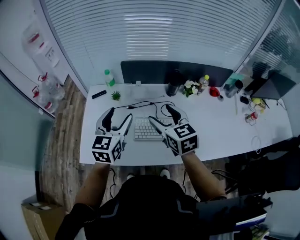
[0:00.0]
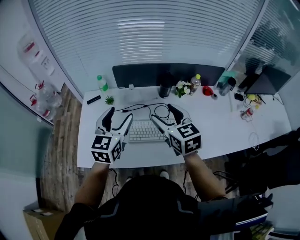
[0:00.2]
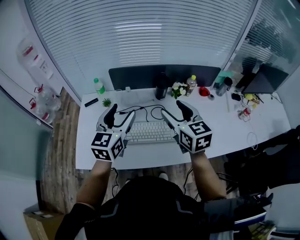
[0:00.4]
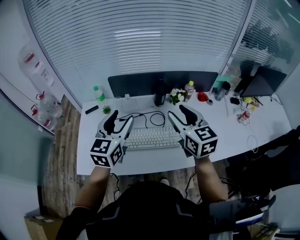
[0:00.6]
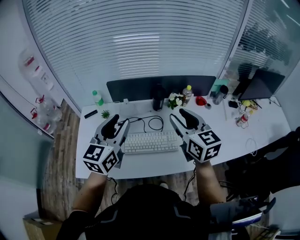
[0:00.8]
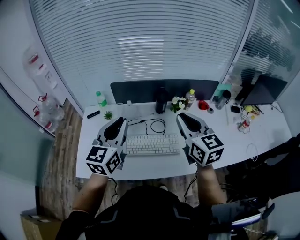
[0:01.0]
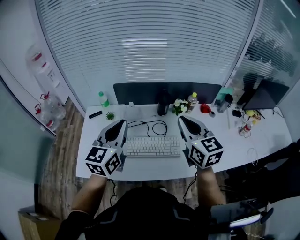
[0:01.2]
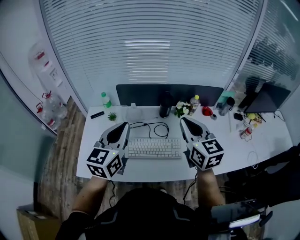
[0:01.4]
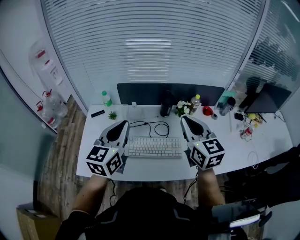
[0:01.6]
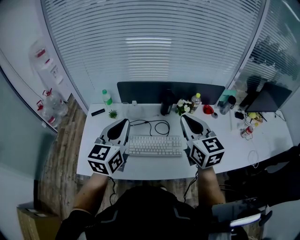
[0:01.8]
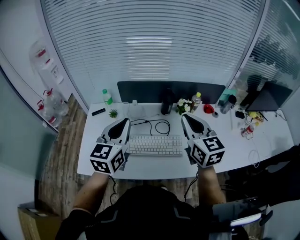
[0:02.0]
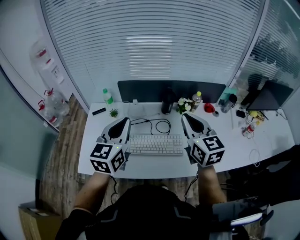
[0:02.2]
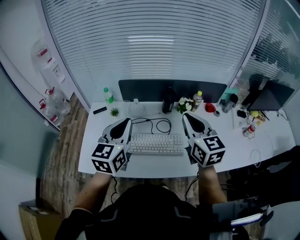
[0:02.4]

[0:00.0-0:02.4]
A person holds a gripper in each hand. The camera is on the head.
0:00.0 to 0:01.2: The left gripper heads upward and to the right, covering some 10 cm, and closes. The right gripper is displaced to the right and upward by some 20 cm, and closes up.
0:01.2 to 0:02.4: There are only small adjustments of the grippers.

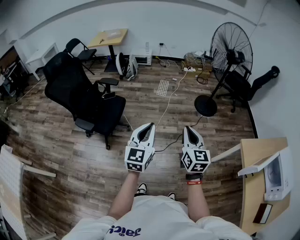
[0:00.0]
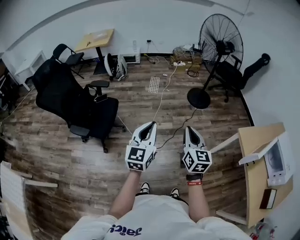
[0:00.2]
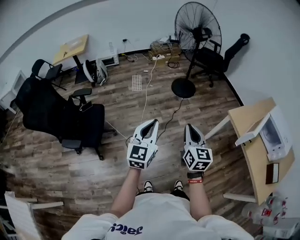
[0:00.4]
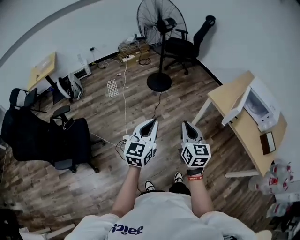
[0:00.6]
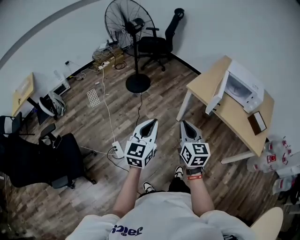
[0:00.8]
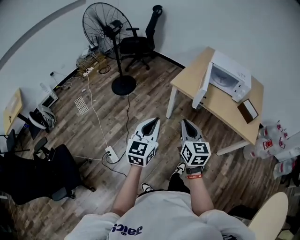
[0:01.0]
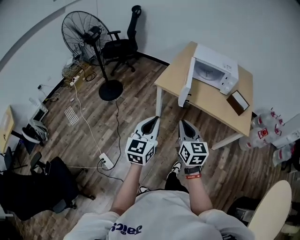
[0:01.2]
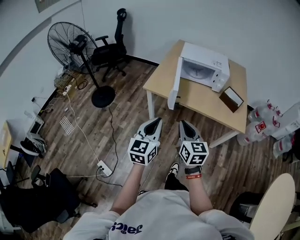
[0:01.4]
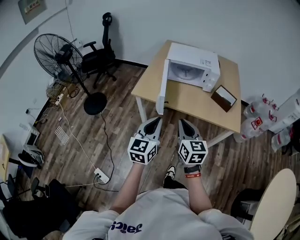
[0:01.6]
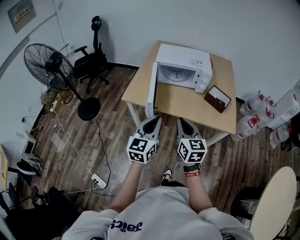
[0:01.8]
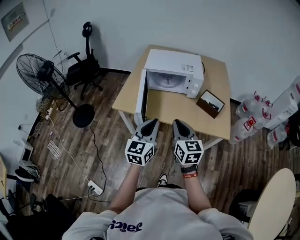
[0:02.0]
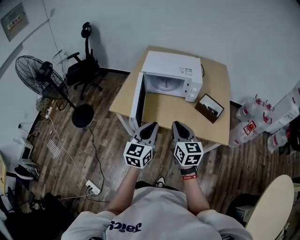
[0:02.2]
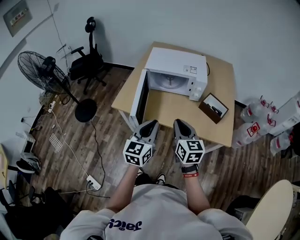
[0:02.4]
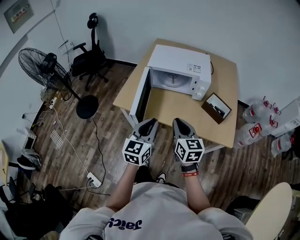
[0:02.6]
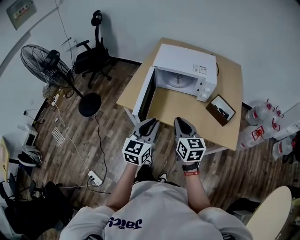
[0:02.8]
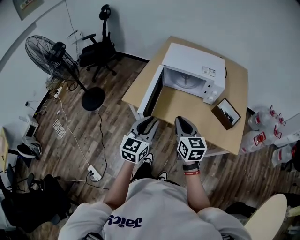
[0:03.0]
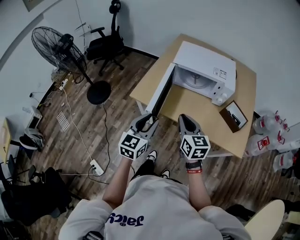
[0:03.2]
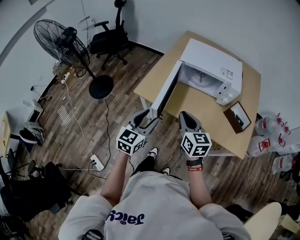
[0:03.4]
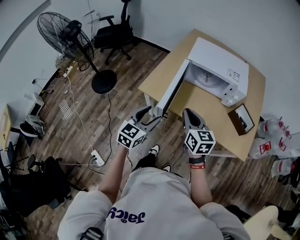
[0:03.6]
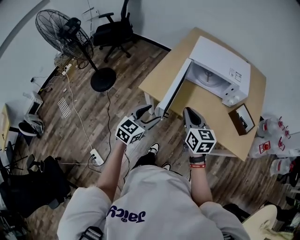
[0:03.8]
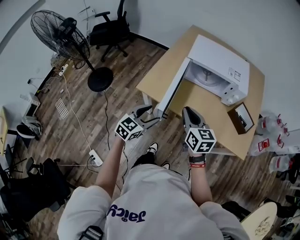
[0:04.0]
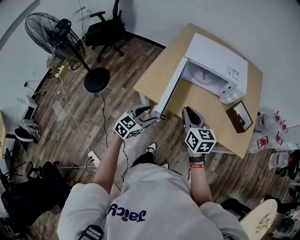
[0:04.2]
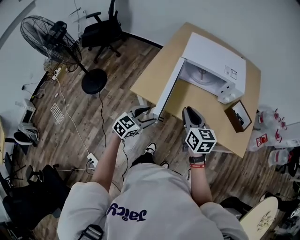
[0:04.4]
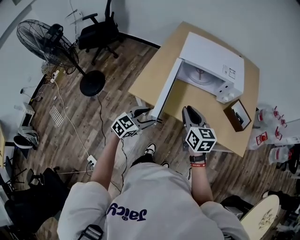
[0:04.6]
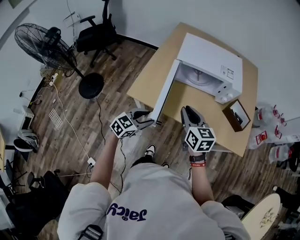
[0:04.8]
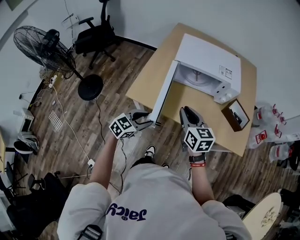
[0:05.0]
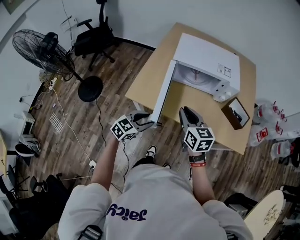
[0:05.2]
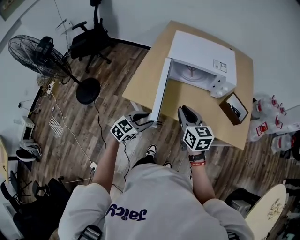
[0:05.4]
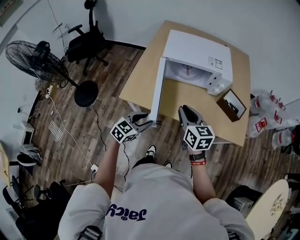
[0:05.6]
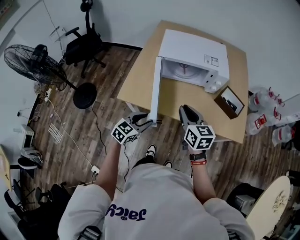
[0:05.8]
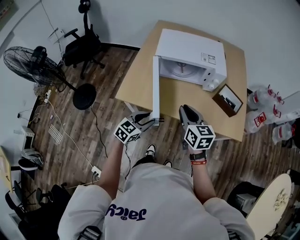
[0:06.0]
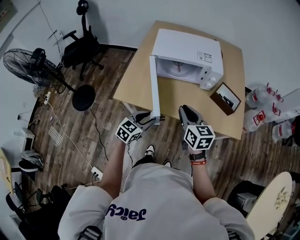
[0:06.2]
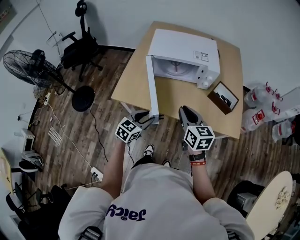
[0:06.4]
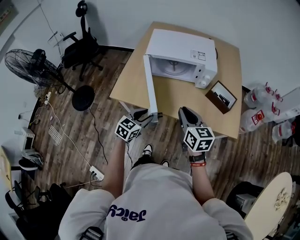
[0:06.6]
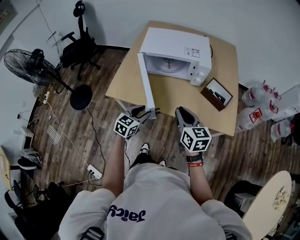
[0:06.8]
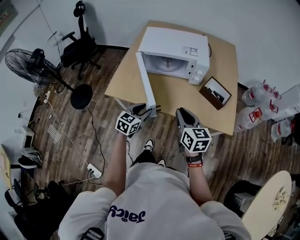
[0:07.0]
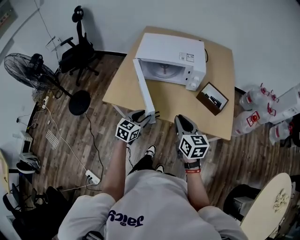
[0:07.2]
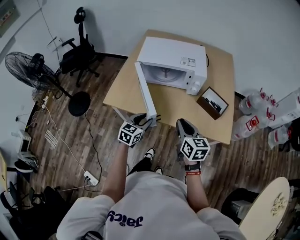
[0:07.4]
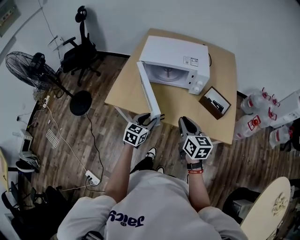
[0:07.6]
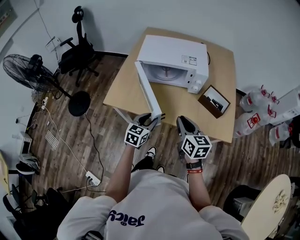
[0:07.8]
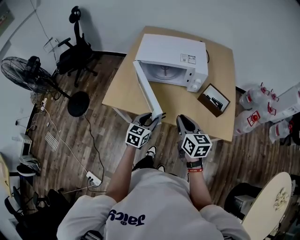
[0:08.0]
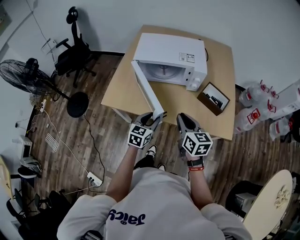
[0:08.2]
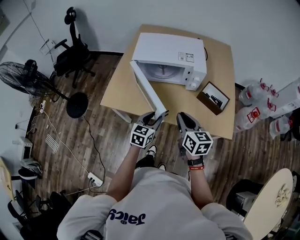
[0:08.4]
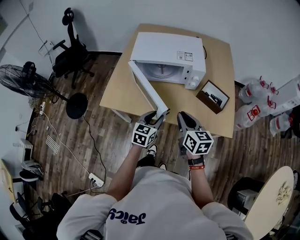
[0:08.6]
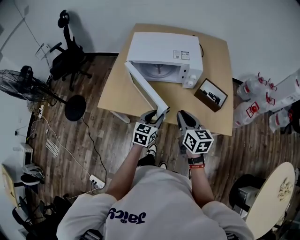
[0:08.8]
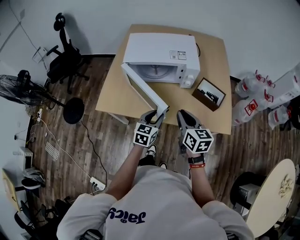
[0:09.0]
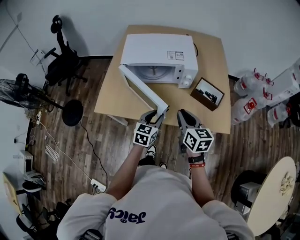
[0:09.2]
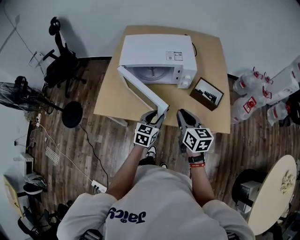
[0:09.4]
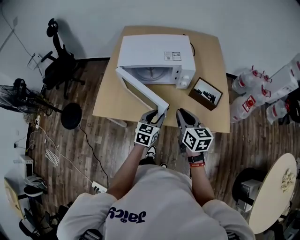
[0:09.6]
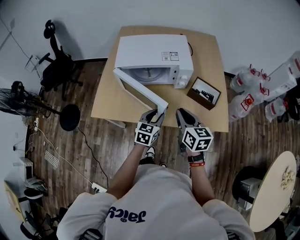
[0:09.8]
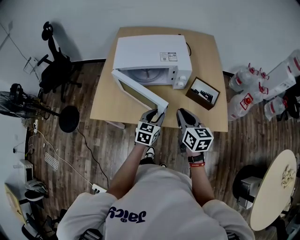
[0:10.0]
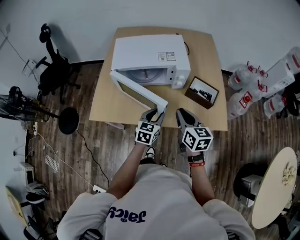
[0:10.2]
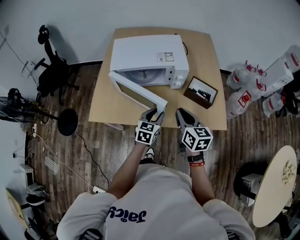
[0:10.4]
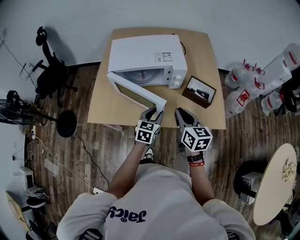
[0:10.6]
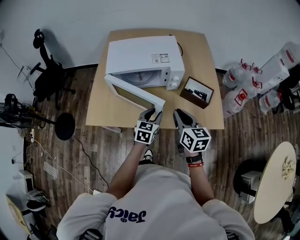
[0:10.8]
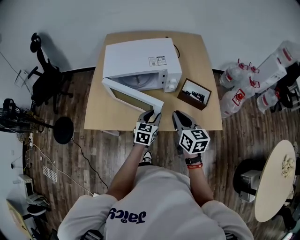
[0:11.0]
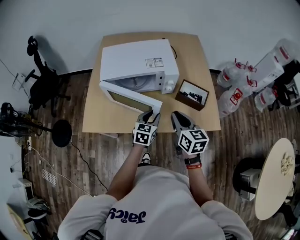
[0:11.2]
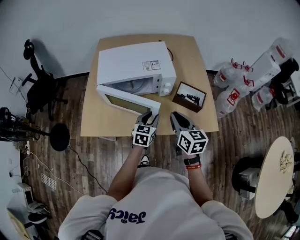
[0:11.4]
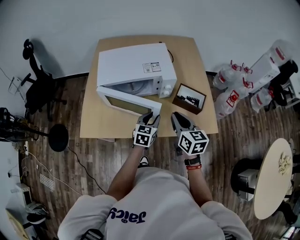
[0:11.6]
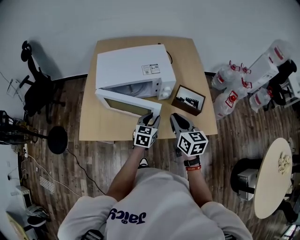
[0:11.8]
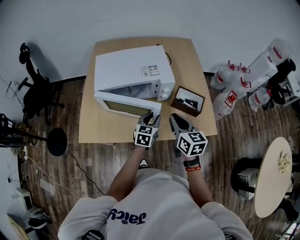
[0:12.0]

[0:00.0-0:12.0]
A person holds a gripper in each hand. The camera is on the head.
0:00.0 to 0:01.6: The two grippers travel together, about 60 cm. The left gripper swivels approximately 70 degrees. The right gripper turns by about 70 degrees.
0:01.6 to 0:03.0: Both grippers move forward, about 20 cm.
0:03.0 to 0:04.4: The left gripper shifts about 20 cm downward, to the left and forward, rotates some 30 degrees, and opens; the right gripper heads to the left and forward, covering some 15 cm.
0:04.4 to 0:06.0: The two grippers go some 10 cm to the right. The left gripper closes.
0:06.0 to 0:07.6: The two grippers go some 10 cm to the right.
0:07.6 to 0:09.0: The right gripper changes place by about 5 cm, while the left gripper travels to the right by roughly 5 cm.
0:09.0 to 0:10.4: The left gripper ends up some 5 cm from where it was.
0:10.4 to 0:12.0: The grippers both shift forward by approximately 5 cm.

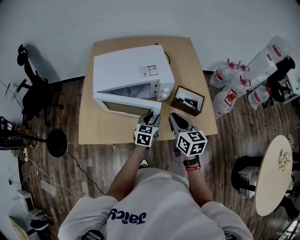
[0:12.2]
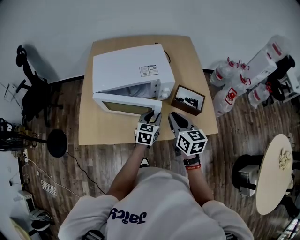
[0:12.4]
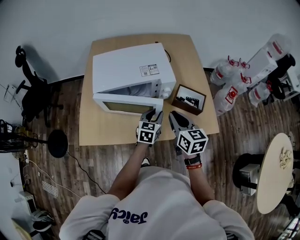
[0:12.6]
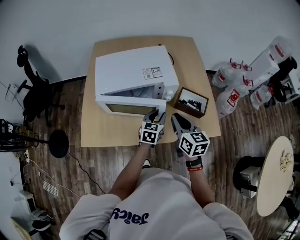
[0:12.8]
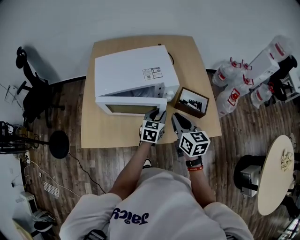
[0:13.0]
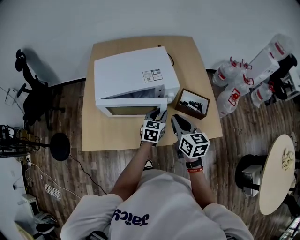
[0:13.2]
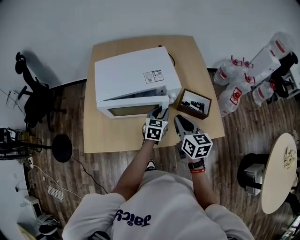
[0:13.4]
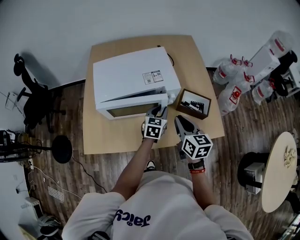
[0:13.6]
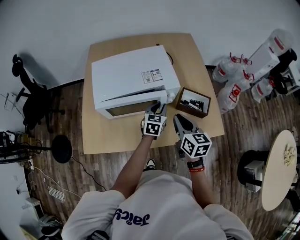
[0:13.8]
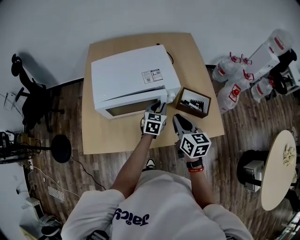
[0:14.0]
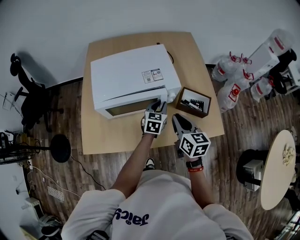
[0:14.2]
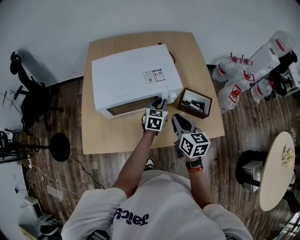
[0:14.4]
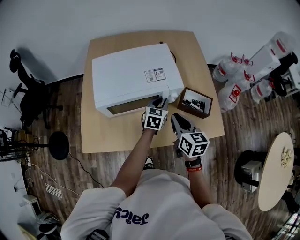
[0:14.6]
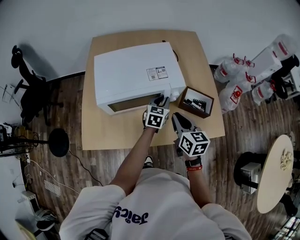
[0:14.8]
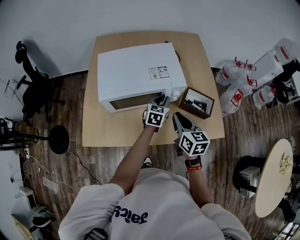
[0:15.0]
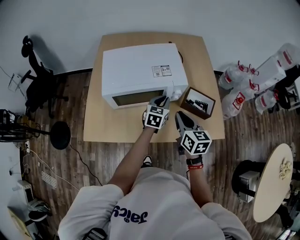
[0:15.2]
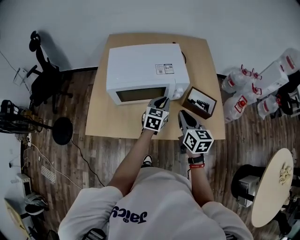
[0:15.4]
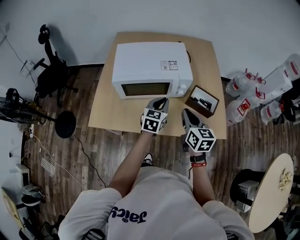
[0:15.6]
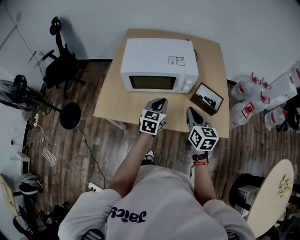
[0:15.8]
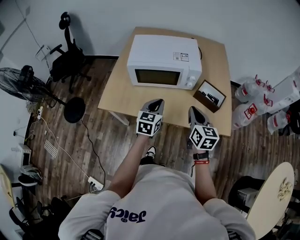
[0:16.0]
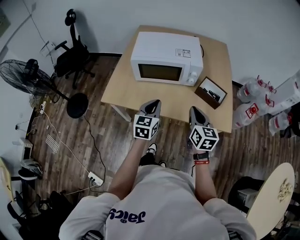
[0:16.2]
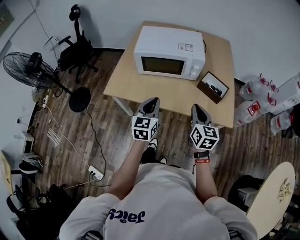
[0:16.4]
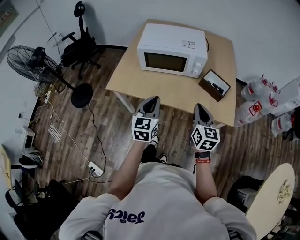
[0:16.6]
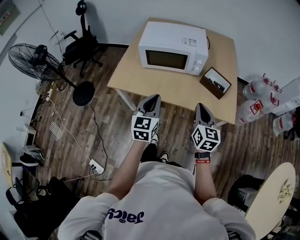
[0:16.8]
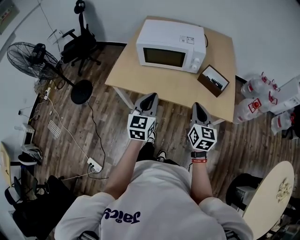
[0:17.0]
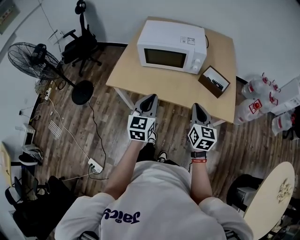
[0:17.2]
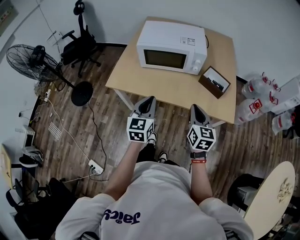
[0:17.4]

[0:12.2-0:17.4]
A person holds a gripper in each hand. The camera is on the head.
0:12.2 to 0:14.0: The right gripper moves forward, about 5 cm. The left gripper is displaced forward by some 10 cm.
0:14.0 to 0:15.6: The left gripper is displaced backward and upward by about 10 cm. The right gripper travels backward by roughly 5 cm.
0:15.6 to 0:17.4: The grippers both shift backward by roughly 25 cm. The left gripper turns by approximately 20 degrees.

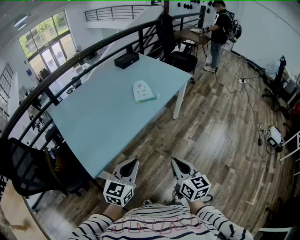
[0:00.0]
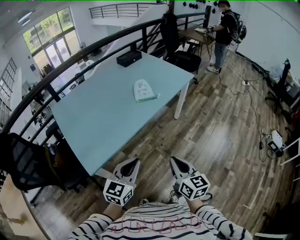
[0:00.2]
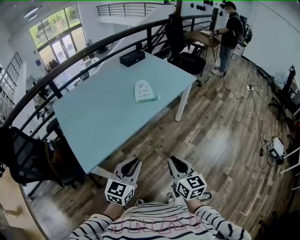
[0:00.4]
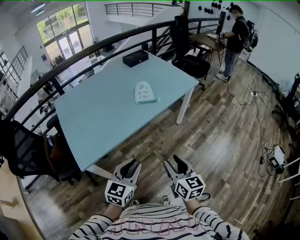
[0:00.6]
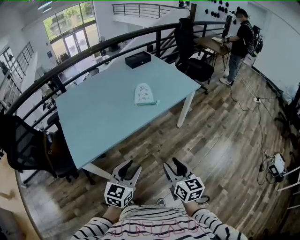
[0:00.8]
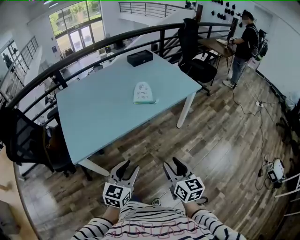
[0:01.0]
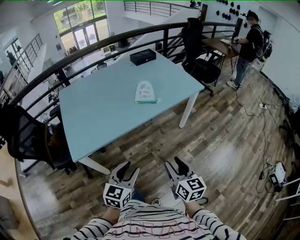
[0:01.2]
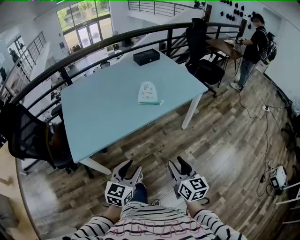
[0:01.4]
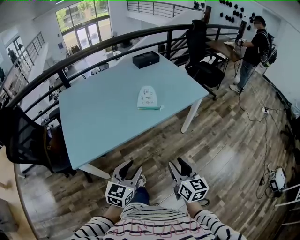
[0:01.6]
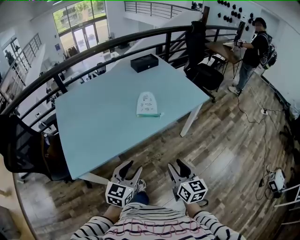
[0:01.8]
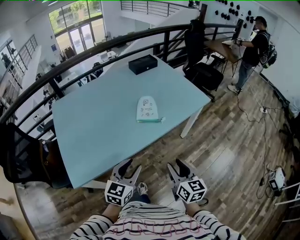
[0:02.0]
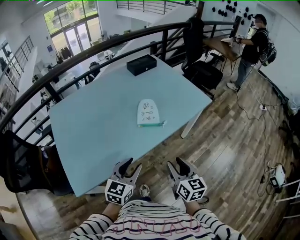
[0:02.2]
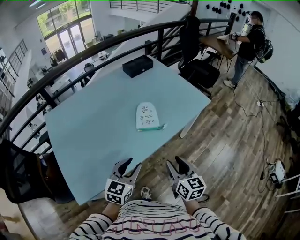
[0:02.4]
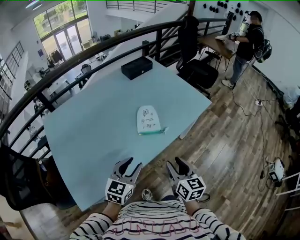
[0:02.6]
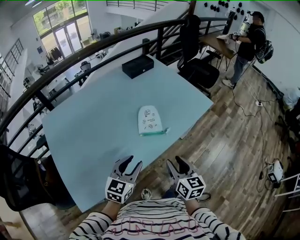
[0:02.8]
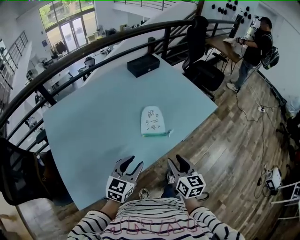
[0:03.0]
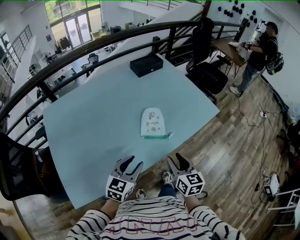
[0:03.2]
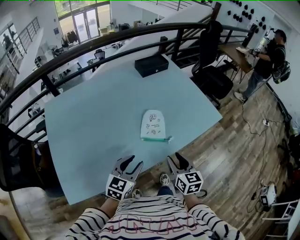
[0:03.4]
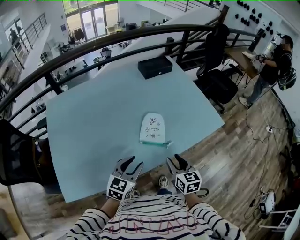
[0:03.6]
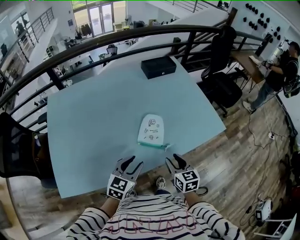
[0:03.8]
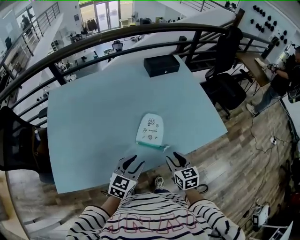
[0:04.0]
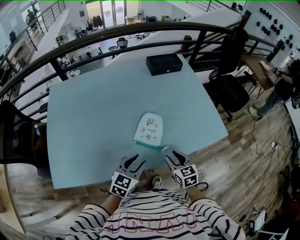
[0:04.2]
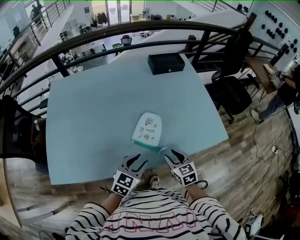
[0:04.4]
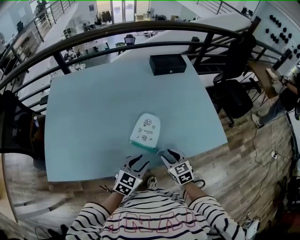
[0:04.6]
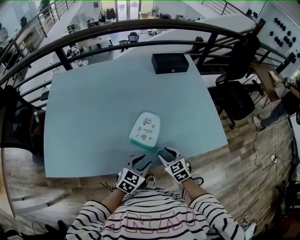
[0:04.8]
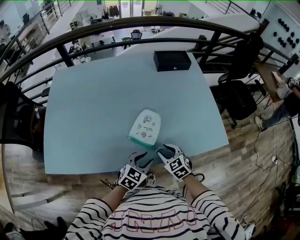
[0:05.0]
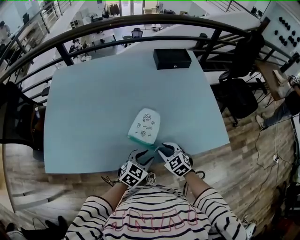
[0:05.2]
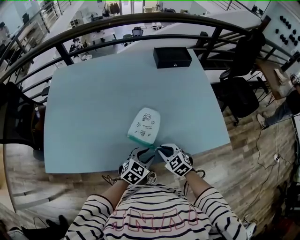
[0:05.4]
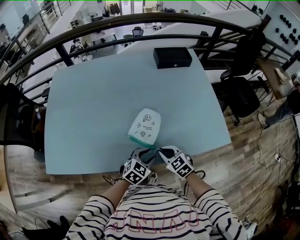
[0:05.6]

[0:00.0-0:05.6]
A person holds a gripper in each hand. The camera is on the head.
0:00.0 to 0:01.4: The right gripper moves to the right and forward, approximately 20 cm, and opens up. Meanwhile the left gripper heads to the right, covering roughly 15 cm, and opens.
0:01.4 to 0:02.8: The right gripper goes some 30 cm forward and to the left. The left gripper travels forward by roughly 30 cm.
0:02.8 to 0:04.2: The left gripper shifts roughly 15 cm forward, to the right and downward; the right gripper heads forward and downward, covering roughly 20 cm, and changes its angle by some 40 degrees.
0:04.2 to 0:05.6: The left gripper travels to the right and downward by roughly 15 cm, while the right gripper shifts by about 5 cm, changes its angle by approximately 30 degrees, and closes.
